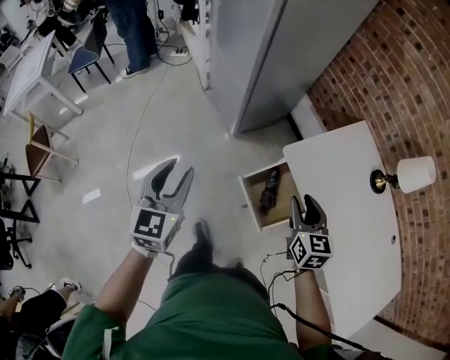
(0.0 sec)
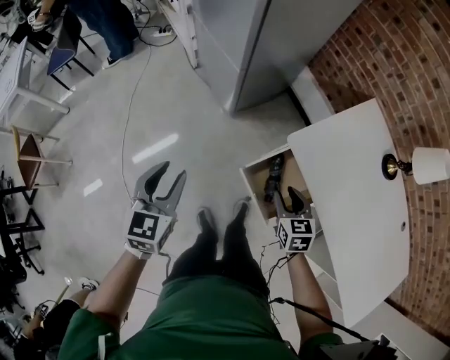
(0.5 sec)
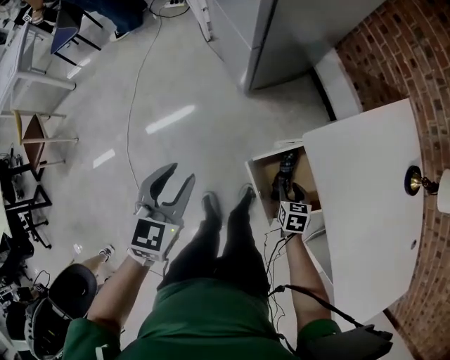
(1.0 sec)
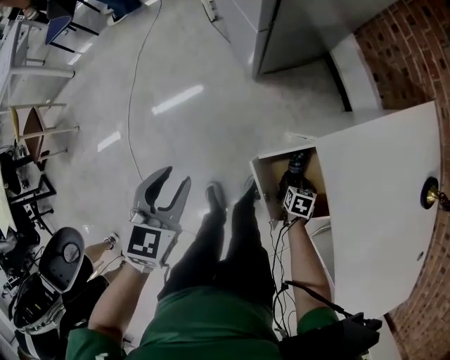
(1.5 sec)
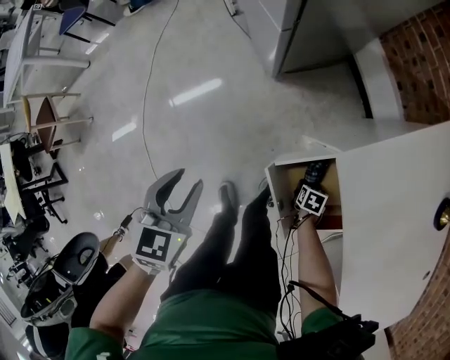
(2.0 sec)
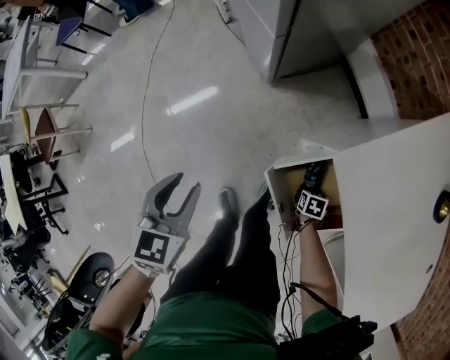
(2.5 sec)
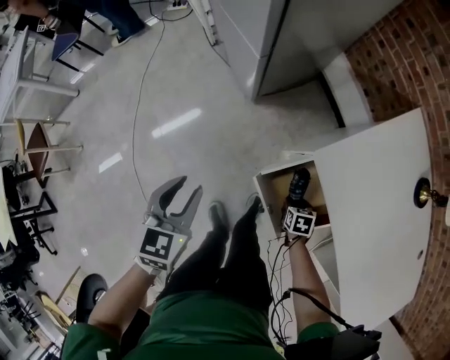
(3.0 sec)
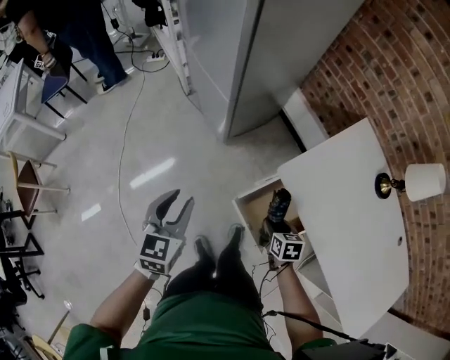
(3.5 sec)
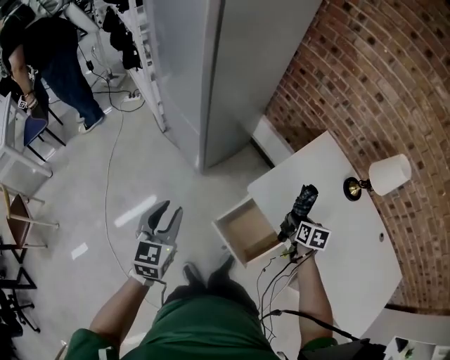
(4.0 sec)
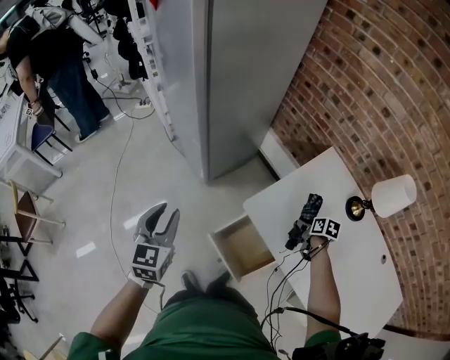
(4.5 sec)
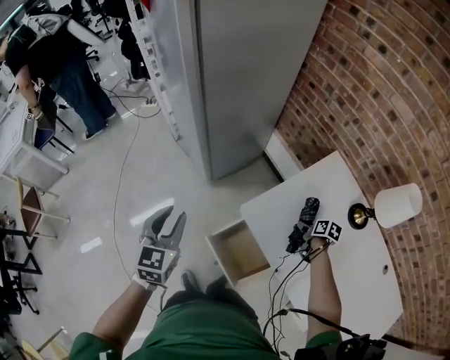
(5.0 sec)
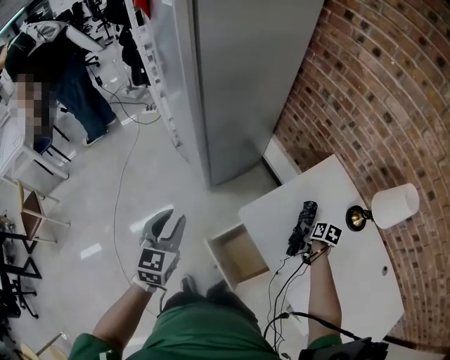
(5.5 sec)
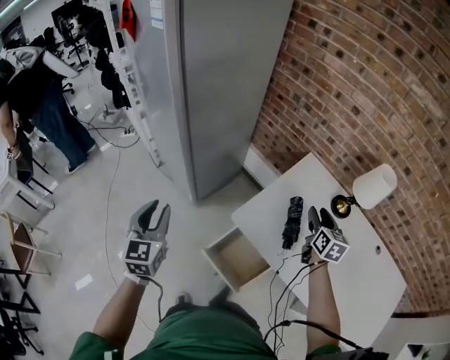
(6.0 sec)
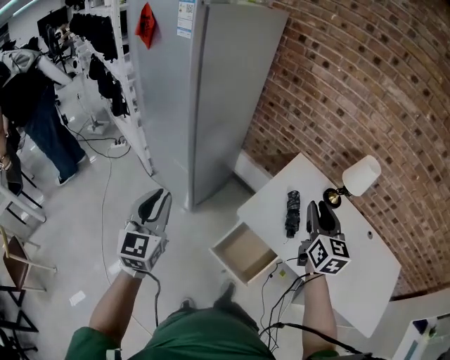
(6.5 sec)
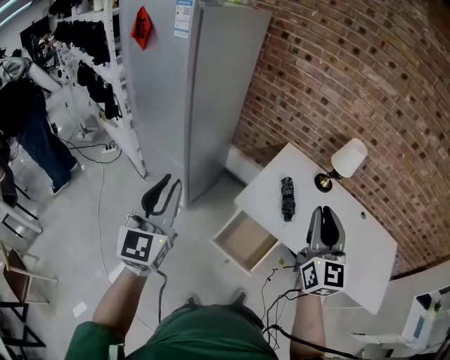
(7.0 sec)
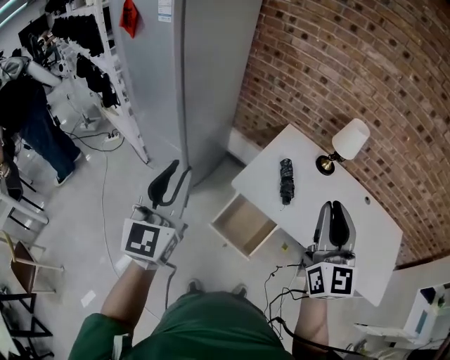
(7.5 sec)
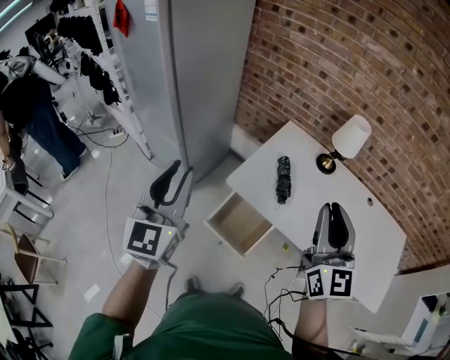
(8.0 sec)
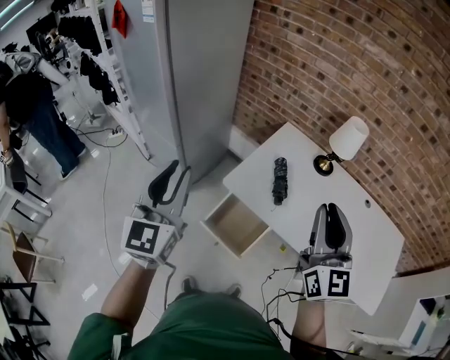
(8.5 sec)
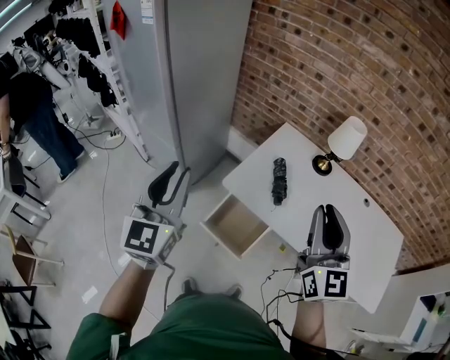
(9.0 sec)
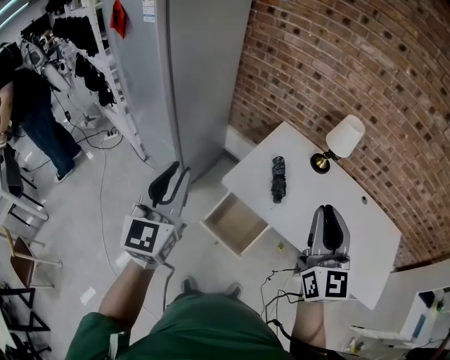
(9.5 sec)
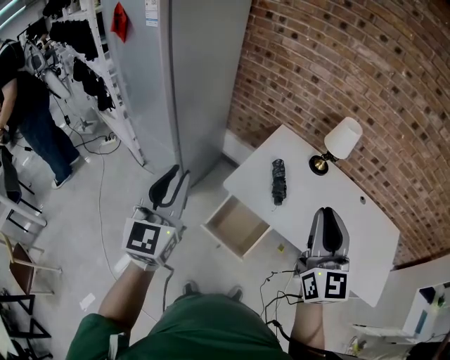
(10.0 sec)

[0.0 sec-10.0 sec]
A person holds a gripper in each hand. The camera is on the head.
0.0 sec to 2.0 sec: The right gripper is displaced downward by about 50 cm, angles its fingers downward, by roughly 50 degrees, and opens up. The left gripper shifts about 25 cm downward, and swivels about 30 degrees.
2.0 sec to 4.0 sec: The left gripper travels upward by approximately 20 cm, and turns by roughly 30 degrees, while the right gripper travels upward by some 40 cm, and changes its angle by some 30 degrees.
4.0 sec to 6.0 sec: The left gripper heads forward and upward, covering about 10 cm, while the right gripper heads upward and to the right, covering about 20 cm, and rotates some 30 degrees.
6.0 sec to 8.0 sec: The left gripper is displaced upward, backward and to the right by approximately 25 cm, and swivels about 30 degrees, while the right gripper travels backward and upward by about 40 cm, points its fingers about 30 degrees further upward, and closes up.
8.0 sec to 10.0 sec: The grippers move only a little.

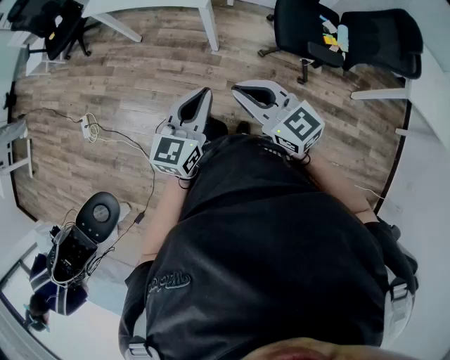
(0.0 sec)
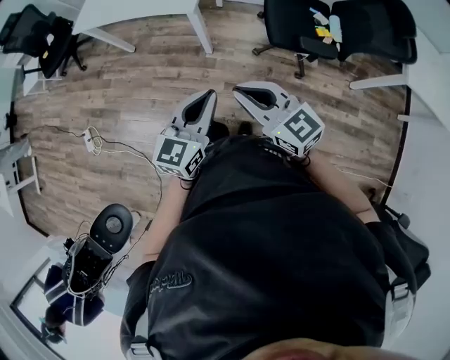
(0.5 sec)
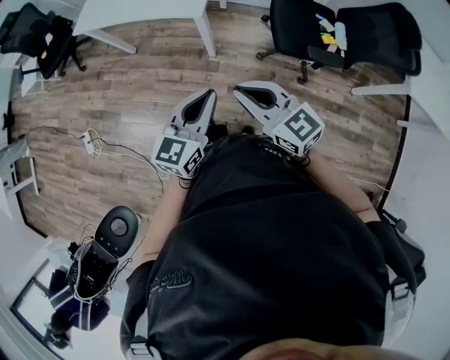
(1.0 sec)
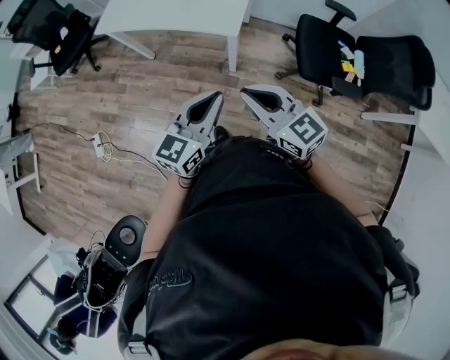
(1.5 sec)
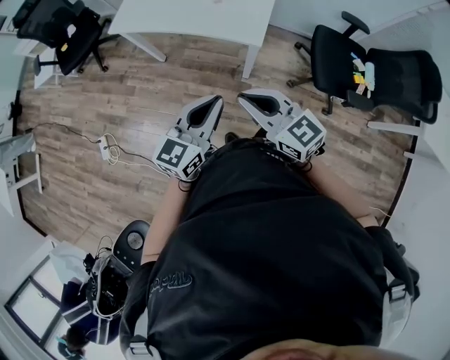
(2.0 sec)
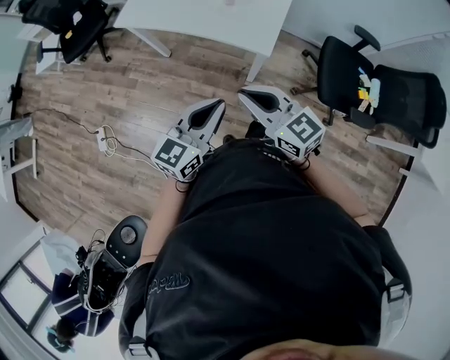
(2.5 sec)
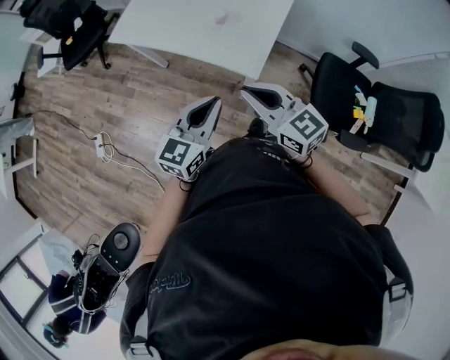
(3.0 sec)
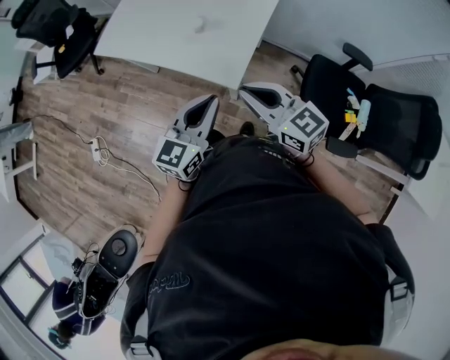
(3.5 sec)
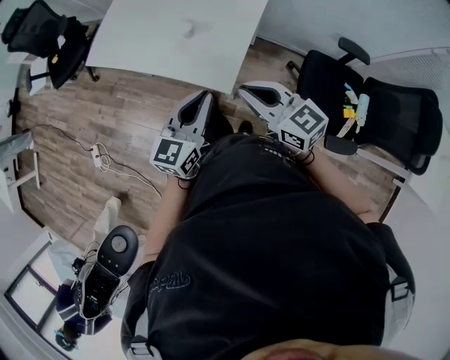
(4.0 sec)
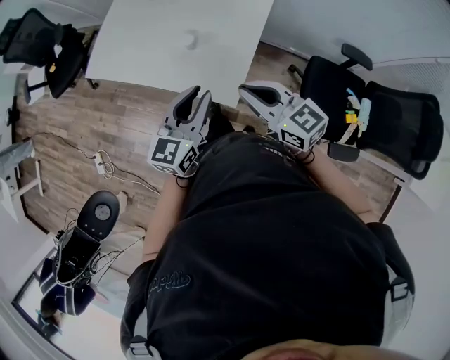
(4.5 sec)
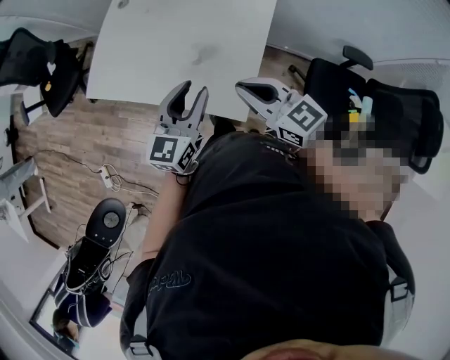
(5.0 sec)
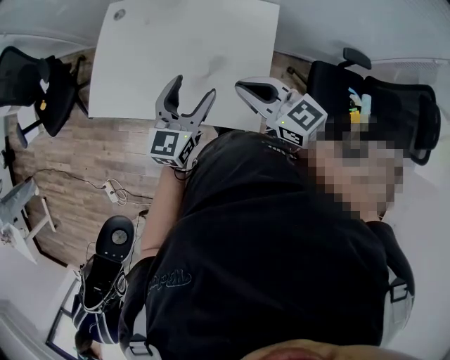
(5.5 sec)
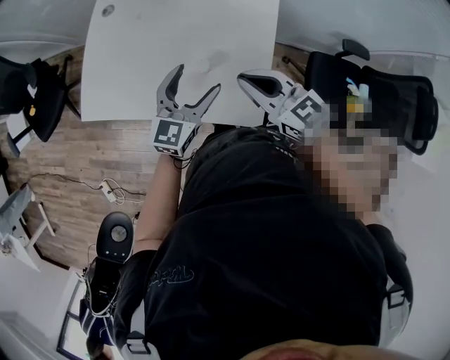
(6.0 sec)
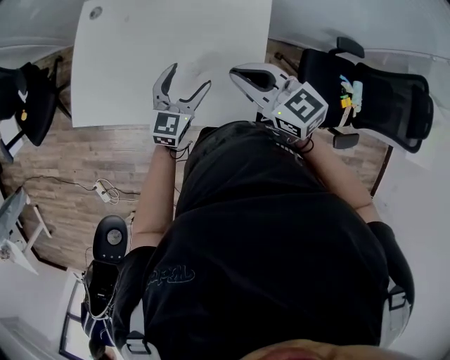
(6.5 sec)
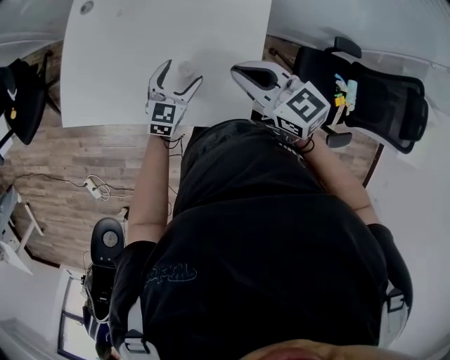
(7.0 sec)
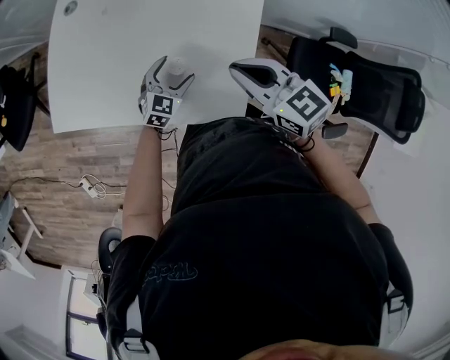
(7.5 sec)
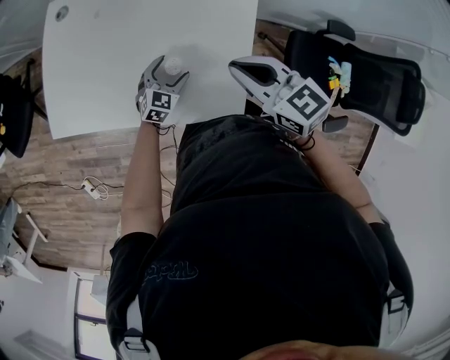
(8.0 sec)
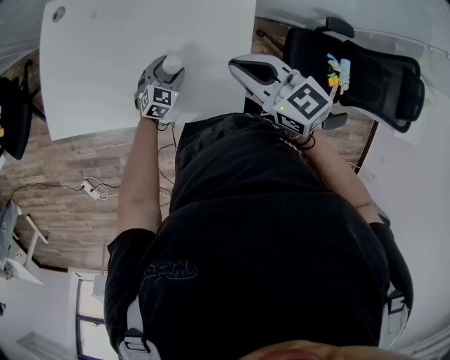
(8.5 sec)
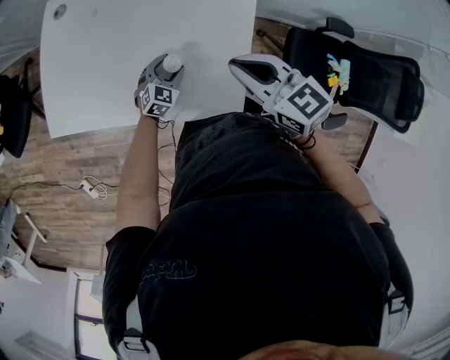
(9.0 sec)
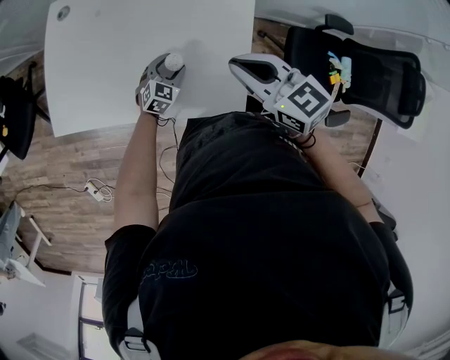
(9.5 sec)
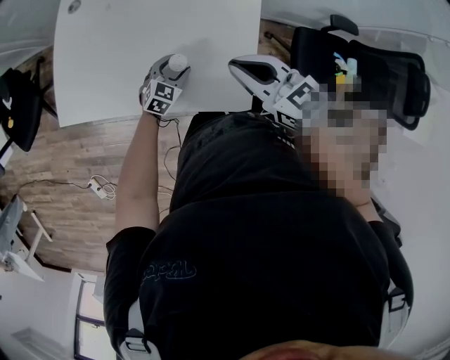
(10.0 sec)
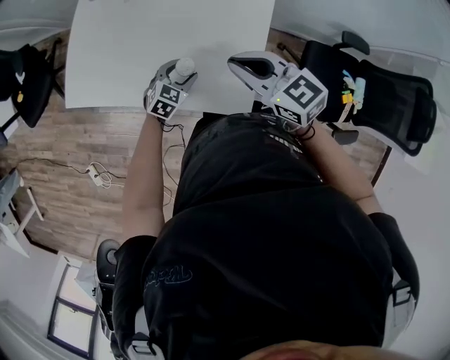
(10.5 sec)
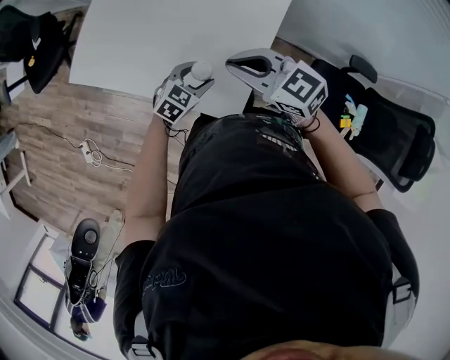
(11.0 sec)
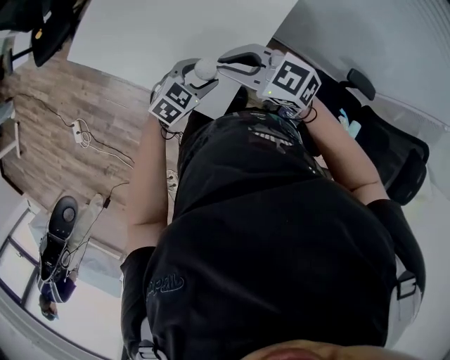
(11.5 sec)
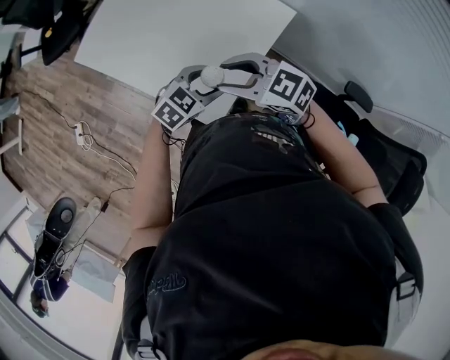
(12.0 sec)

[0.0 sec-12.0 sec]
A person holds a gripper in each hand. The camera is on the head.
0.0 sec to 2.0 sec: Both grippers move forward and to the left, roughly 30 cm.
2.0 sec to 4.0 sec: Both grippers move forward and to the right, about 30 cm.
4.0 sec to 6.0 sec: The grippers both shift forward by about 25 cm. The left gripper opens.
6.0 sec to 8.0 sec: The right gripper shifts by some 5 cm. Meanwhile the left gripper travels downward by approximately 25 cm, and turns by approximately 30 degrees.
8.0 sec to 10.0 sec: The grippers stay close to where they were, moving slightly.
10.0 sec to 12.0 sec: The right gripper moves some 5 cm, turns by roughly 50 degrees, and opens up. Meanwhile the left gripper shifts by some 25 cm.

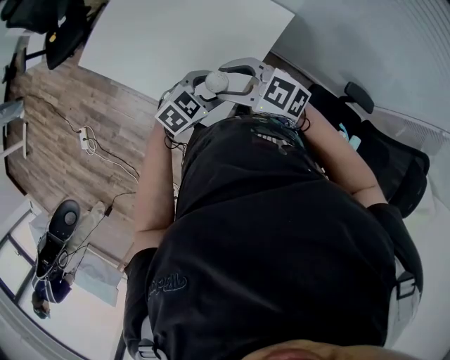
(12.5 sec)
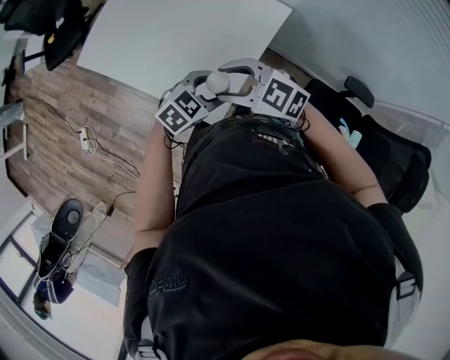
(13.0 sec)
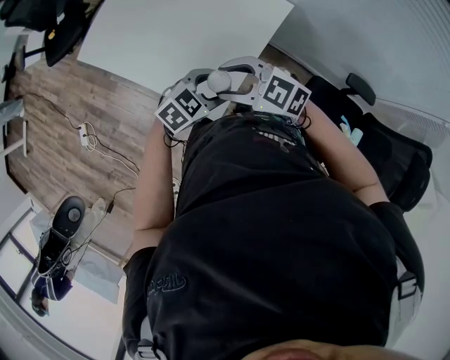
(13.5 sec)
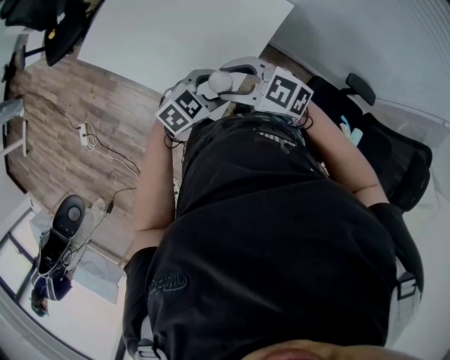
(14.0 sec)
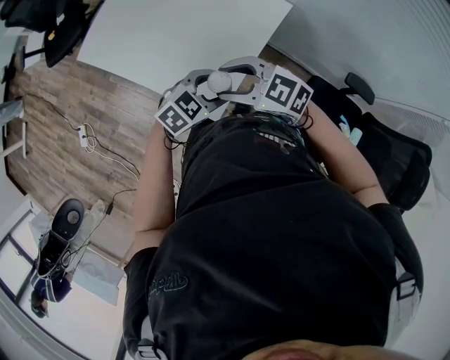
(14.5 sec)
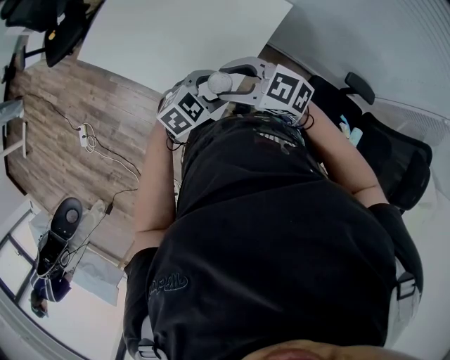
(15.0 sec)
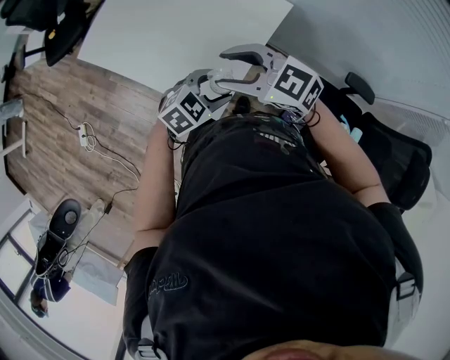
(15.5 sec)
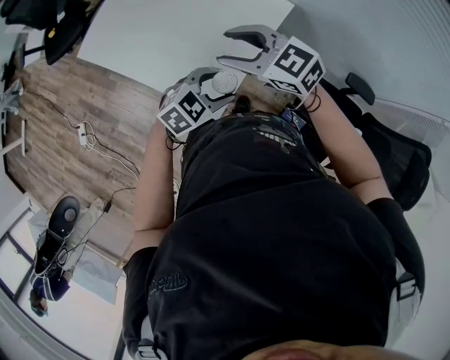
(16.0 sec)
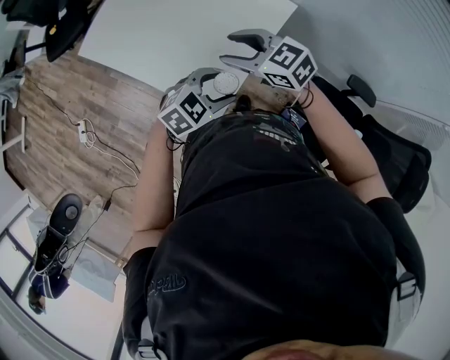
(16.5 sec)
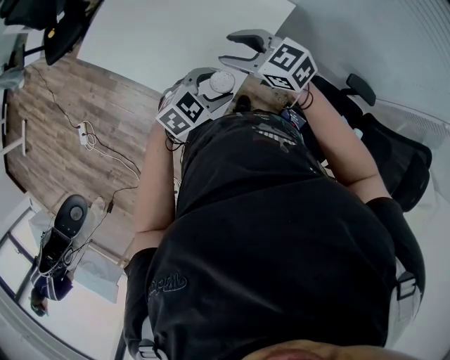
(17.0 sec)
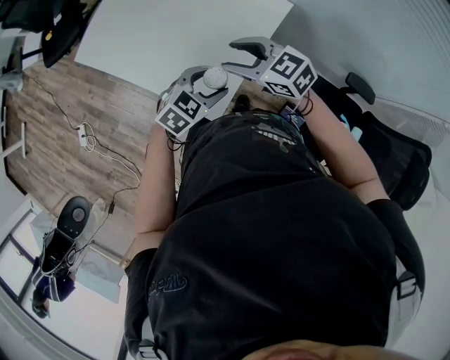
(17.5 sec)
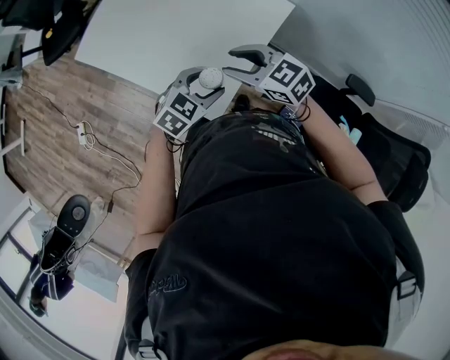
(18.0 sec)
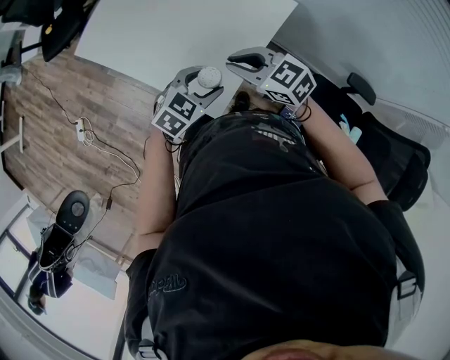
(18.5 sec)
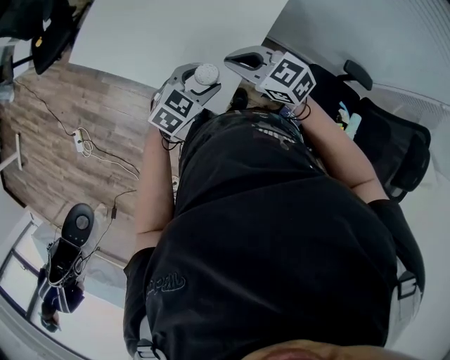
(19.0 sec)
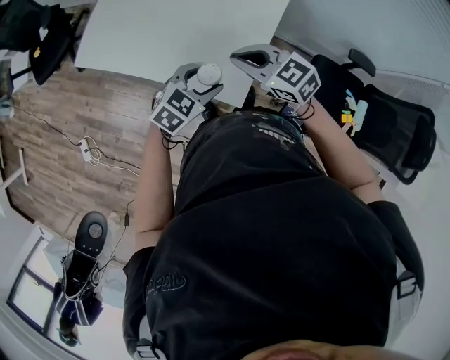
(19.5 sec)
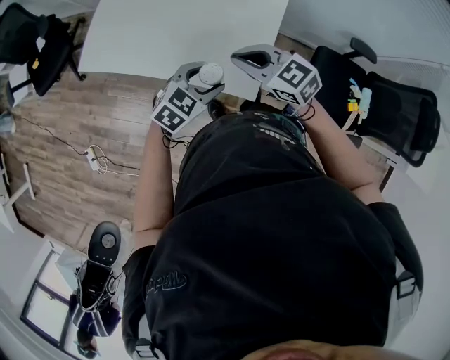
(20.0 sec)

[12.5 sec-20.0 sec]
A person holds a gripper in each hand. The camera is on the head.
12.5 sec to 14.5 sec: The grippers make only small movements.
14.5 sec to 16.5 sec: The right gripper changes place by some 10 cm.
16.5 sec to 18.0 sec: The grippers make only small movements.
18.0 sec to 20.0 sec: The grippers both shift to the left by some 10 cm. The right gripper closes up.
